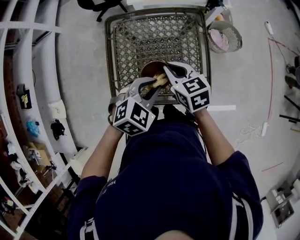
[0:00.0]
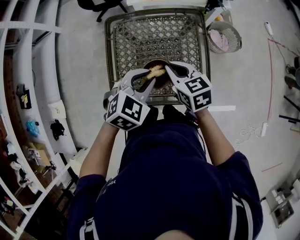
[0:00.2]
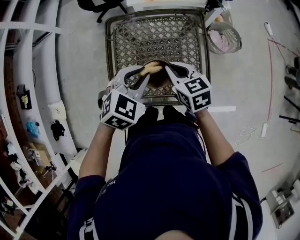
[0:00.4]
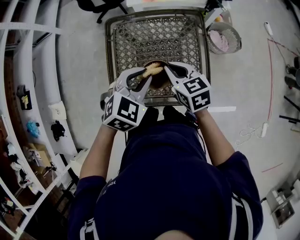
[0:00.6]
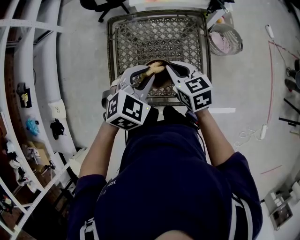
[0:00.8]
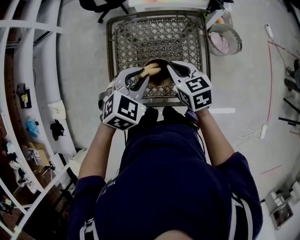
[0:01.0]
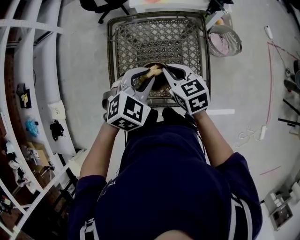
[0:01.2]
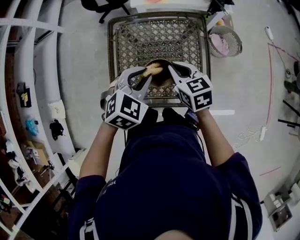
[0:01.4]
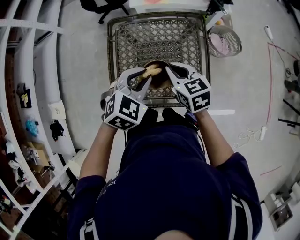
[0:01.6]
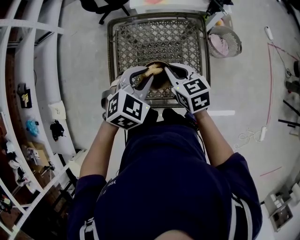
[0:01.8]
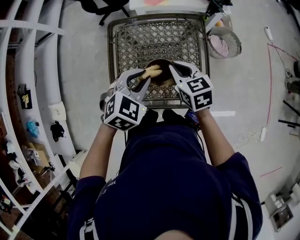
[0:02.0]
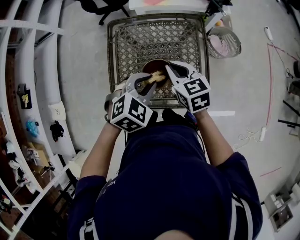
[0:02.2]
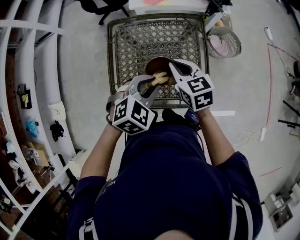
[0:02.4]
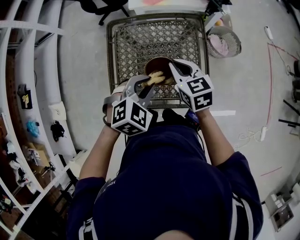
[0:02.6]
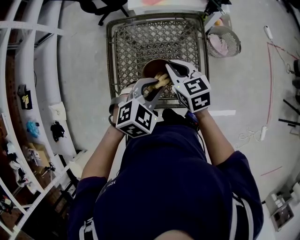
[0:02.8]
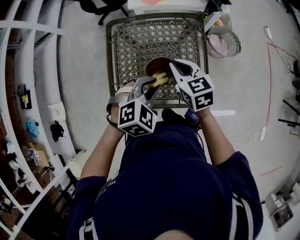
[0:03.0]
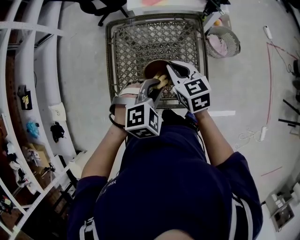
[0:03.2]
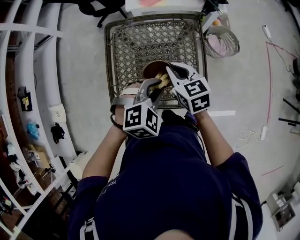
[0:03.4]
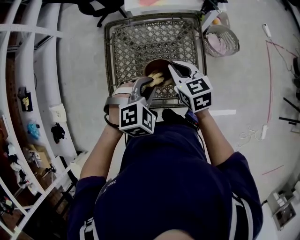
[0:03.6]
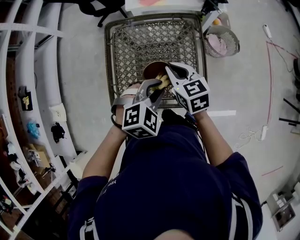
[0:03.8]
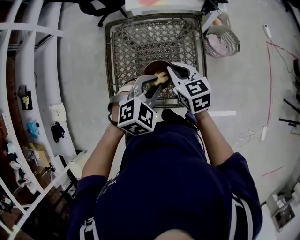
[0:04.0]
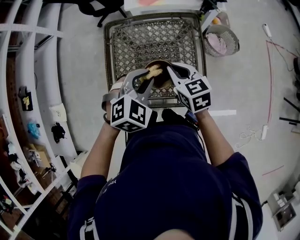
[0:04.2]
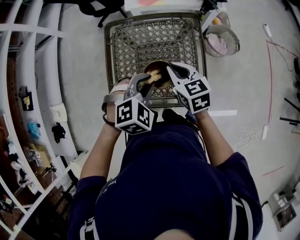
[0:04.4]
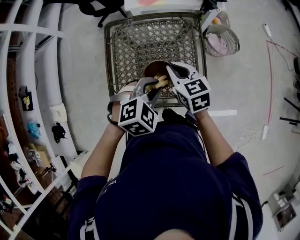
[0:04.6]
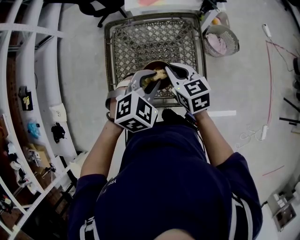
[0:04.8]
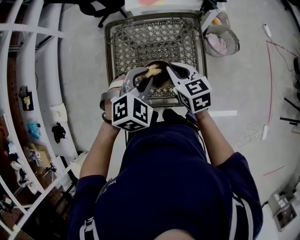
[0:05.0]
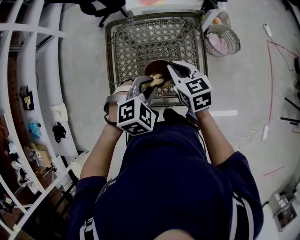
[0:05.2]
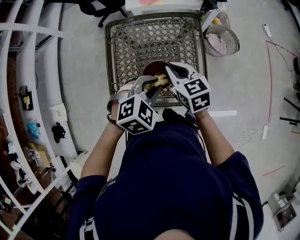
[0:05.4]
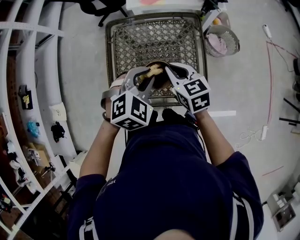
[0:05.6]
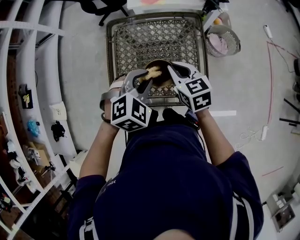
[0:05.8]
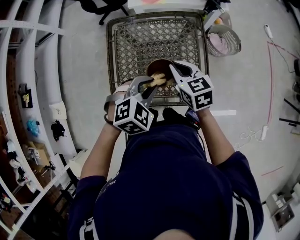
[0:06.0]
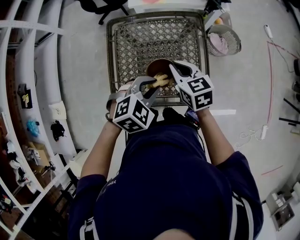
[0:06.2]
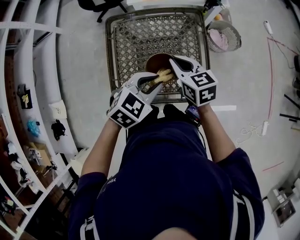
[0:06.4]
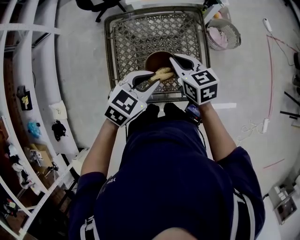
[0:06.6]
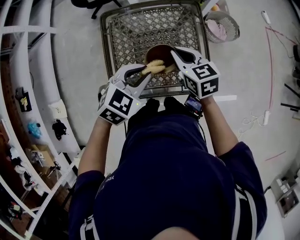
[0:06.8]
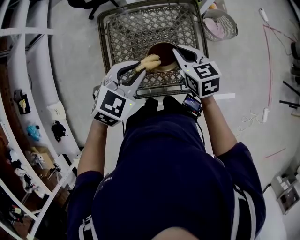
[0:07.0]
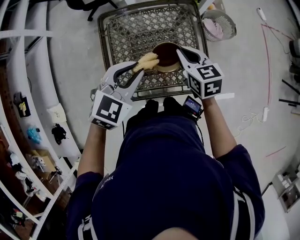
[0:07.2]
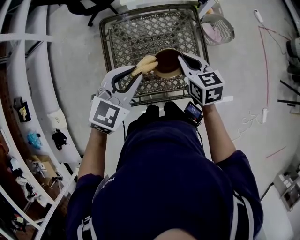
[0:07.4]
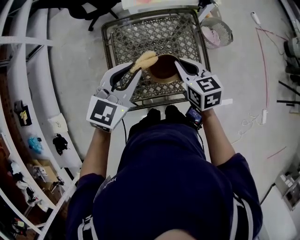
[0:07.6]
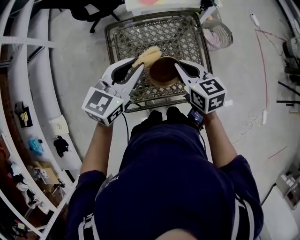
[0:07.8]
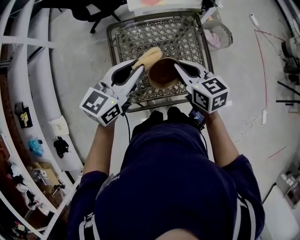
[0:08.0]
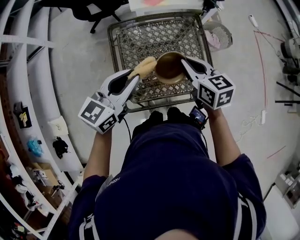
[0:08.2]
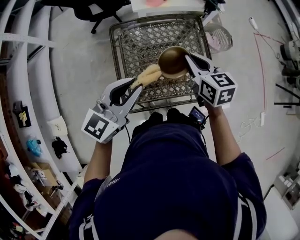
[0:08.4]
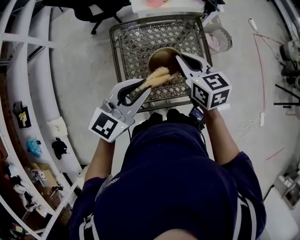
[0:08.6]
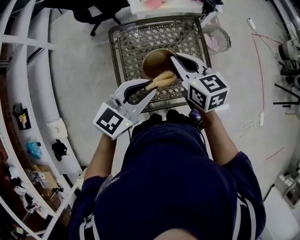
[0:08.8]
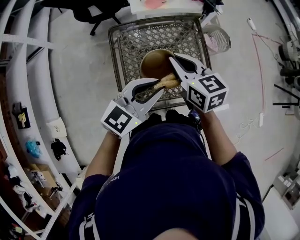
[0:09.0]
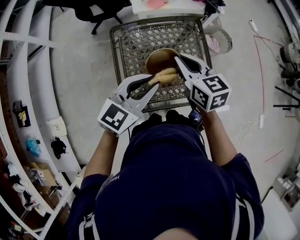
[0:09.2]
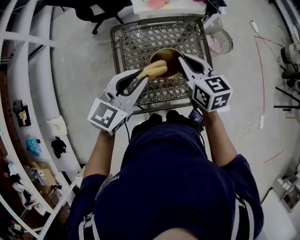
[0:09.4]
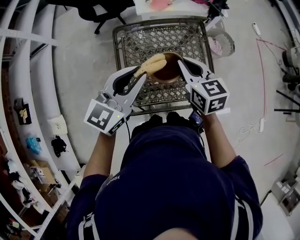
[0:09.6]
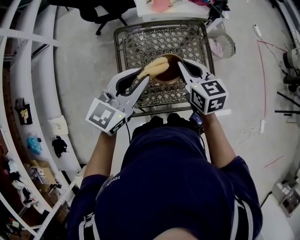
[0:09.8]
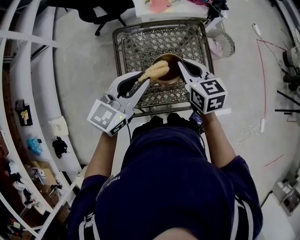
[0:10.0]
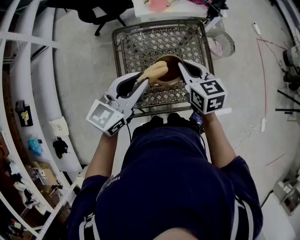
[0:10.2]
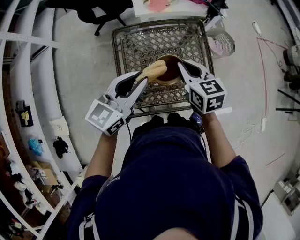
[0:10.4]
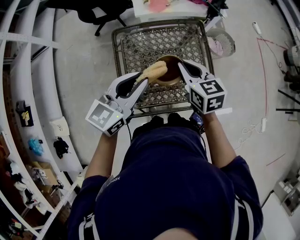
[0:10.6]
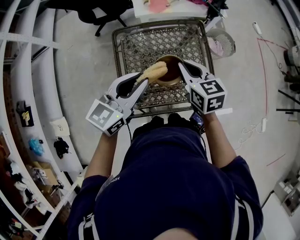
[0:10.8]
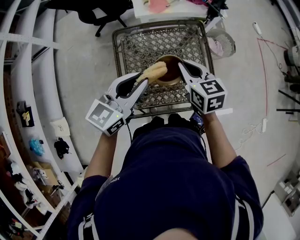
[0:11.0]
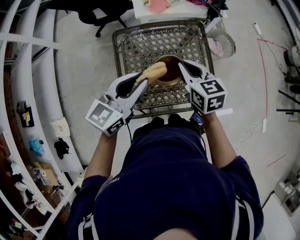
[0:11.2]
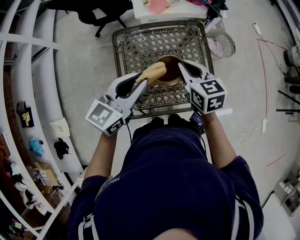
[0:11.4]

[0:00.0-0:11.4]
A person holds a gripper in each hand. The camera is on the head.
0:00.0 to 0:01.4: The left gripper changes place by about 5 cm.
0:01.4 to 0:02.8: The left gripper changes place by about 5 cm.
0:02.8 to 0:05.6: The grippers move only a little.
0:05.6 to 0:07.2: The left gripper travels to the left by some 5 cm.
0:07.2 to 0:08.6: The right gripper is displaced upward and to the left by about 10 cm, while the left gripper heads to the left and upward, covering about 10 cm, and changes its angle by roughly 30 degrees.
0:08.6 to 0:11.4: The grippers stay close to where they were, moving slightly.

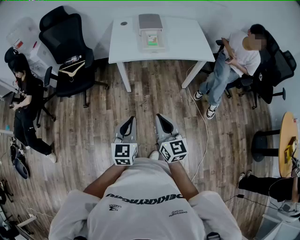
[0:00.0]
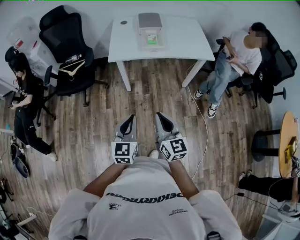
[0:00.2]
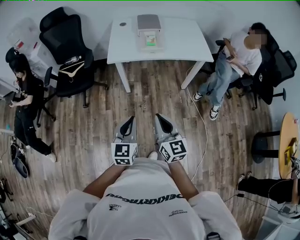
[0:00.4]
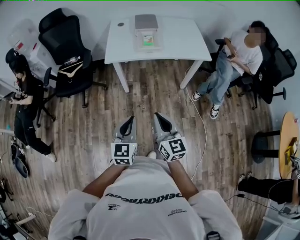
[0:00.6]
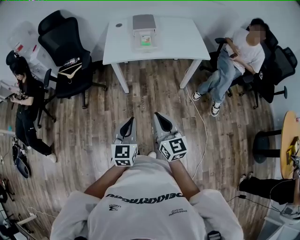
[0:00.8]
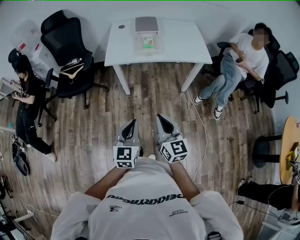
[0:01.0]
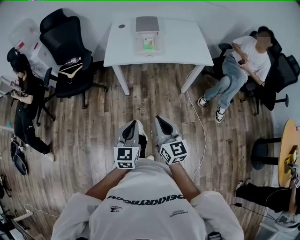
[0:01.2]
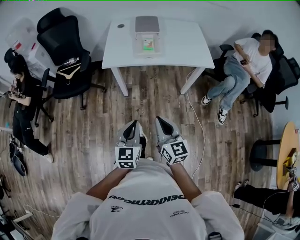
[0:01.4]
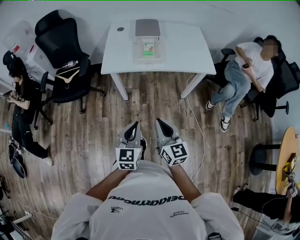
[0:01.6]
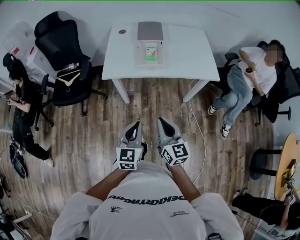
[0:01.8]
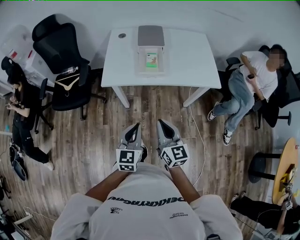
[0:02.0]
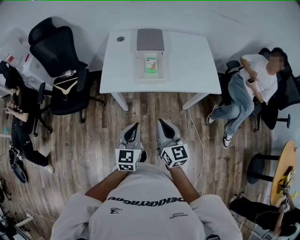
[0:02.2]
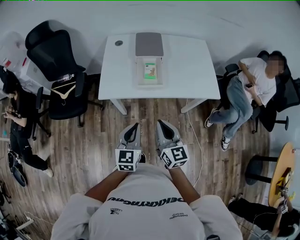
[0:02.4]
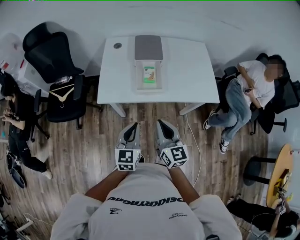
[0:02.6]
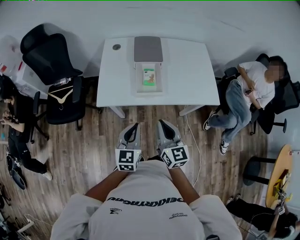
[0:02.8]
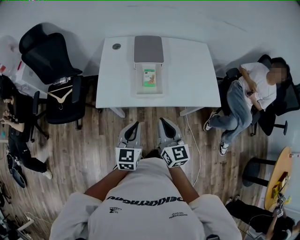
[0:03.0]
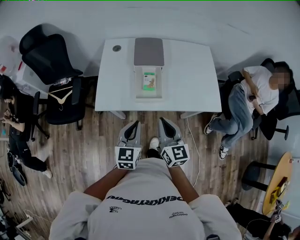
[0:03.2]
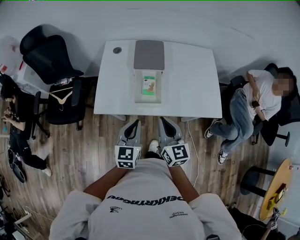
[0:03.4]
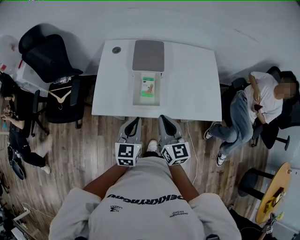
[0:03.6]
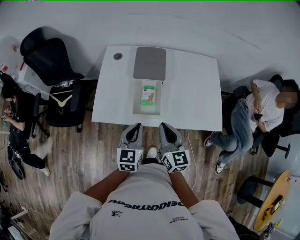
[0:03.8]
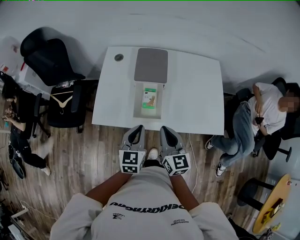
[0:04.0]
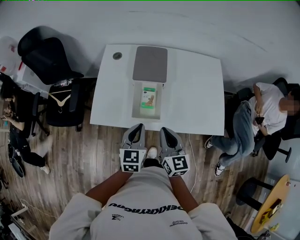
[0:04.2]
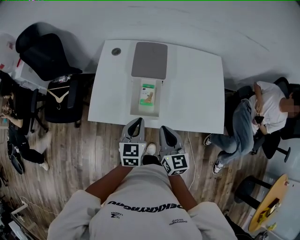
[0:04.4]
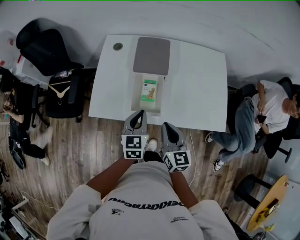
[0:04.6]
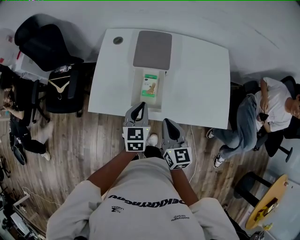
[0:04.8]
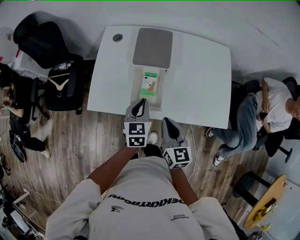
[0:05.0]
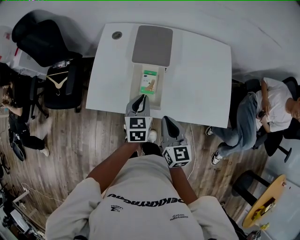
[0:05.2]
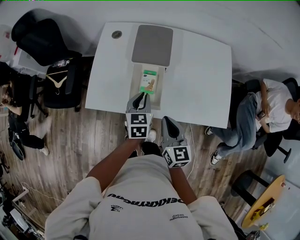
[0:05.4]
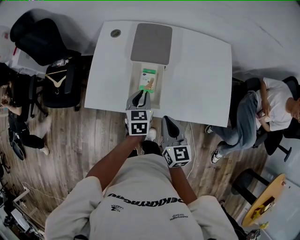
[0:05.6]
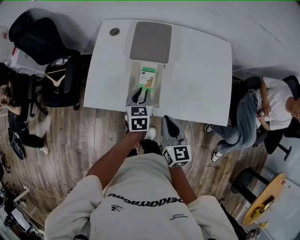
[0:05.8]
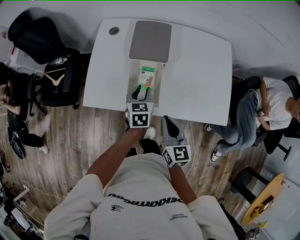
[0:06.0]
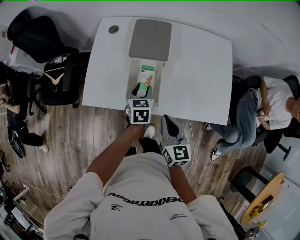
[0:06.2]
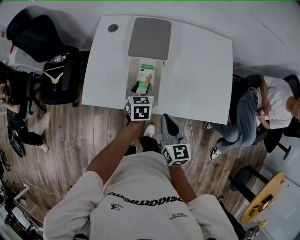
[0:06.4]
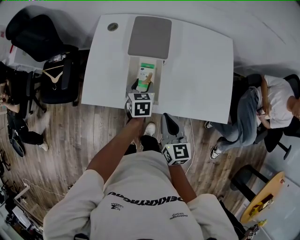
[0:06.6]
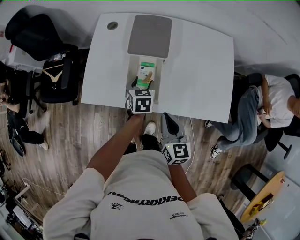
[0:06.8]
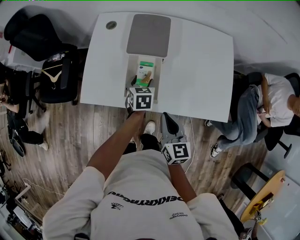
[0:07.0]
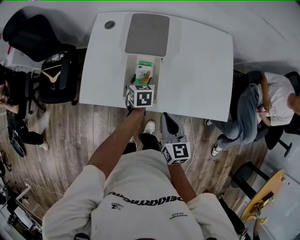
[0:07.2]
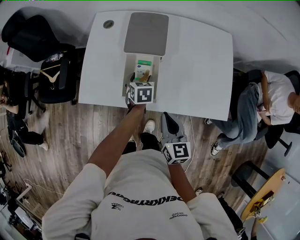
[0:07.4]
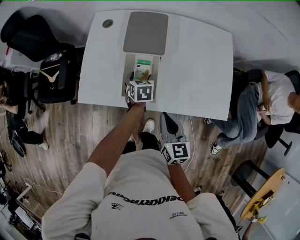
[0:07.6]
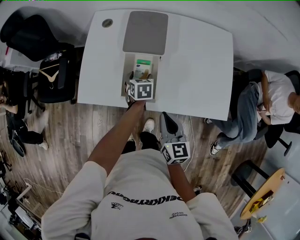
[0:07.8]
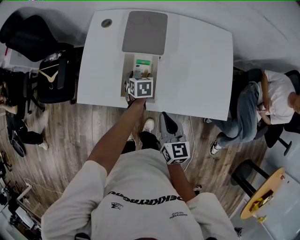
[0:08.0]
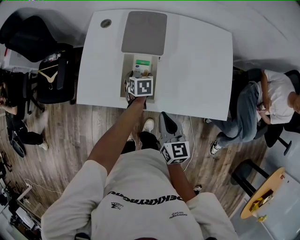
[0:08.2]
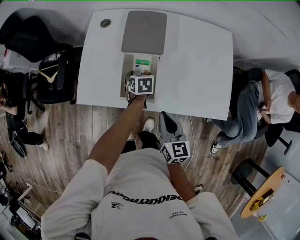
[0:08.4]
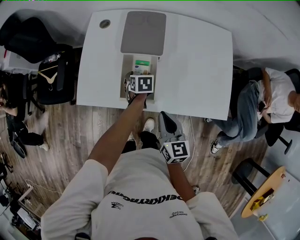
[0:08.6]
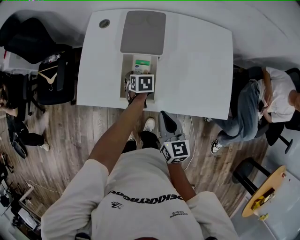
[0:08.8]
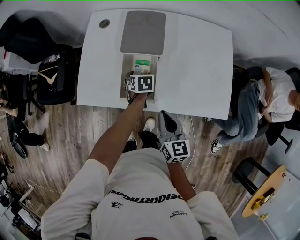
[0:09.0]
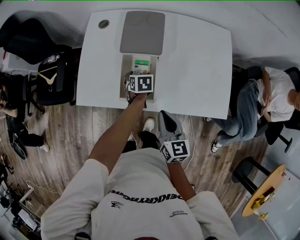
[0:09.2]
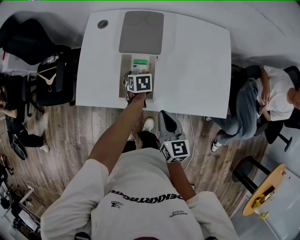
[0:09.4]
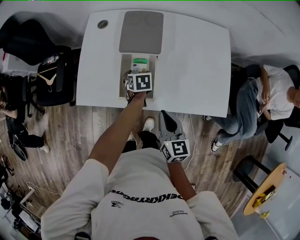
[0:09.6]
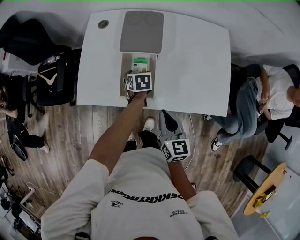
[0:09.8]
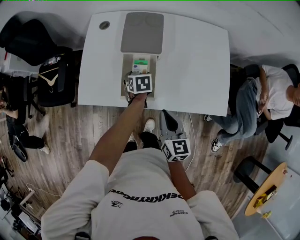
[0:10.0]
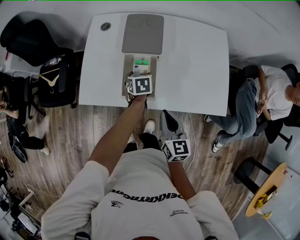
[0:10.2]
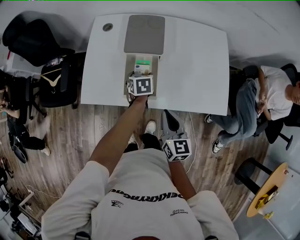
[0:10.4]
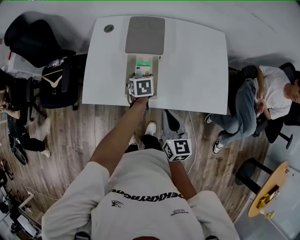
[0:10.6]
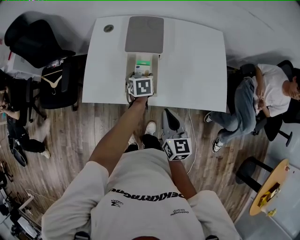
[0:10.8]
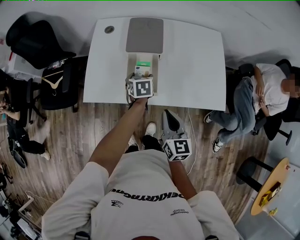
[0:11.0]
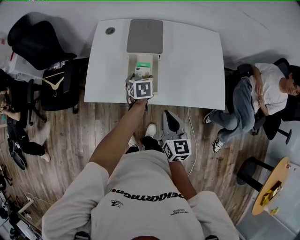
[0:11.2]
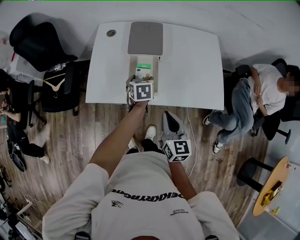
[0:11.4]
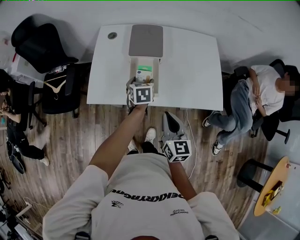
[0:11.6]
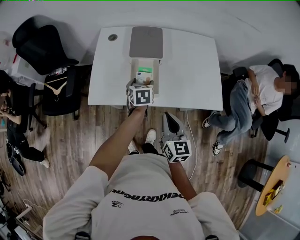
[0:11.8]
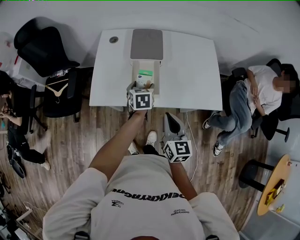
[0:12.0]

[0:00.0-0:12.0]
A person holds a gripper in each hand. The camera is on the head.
0:00.0 to 0:01.6: The left gripper travels to the right and forward by roughly 15 cm, while the right gripper is displaced forward and to the right by approximately 10 cm.
0:01.6 to 0:03.0: Both grippers travel together forward, about 25 cm.
0:03.0 to 0:04.4: The right gripper is displaced forward, to the right and downward by roughly 15 cm, while the left gripper goes approximately 15 cm forward and to the right.
0:04.4 to 0:06.0: The left gripper heads forward and downward, covering approximately 10 cm.
0:06.0 to 0:07.6: The left gripper is displaced downward by approximately 10 cm, and opens its fingers.
0:07.6 to 0:09.0: The grippers move only a little.
0:09.0 to 0:10.4: The left gripper ends up approximately 5 cm from where it was.
0:10.4 to 0:12.0: The left gripper moves upward and backward, some 10 cm, while the right gripper heads backward and upward, covering roughly 10 cm.

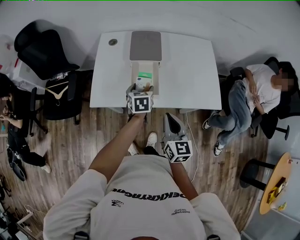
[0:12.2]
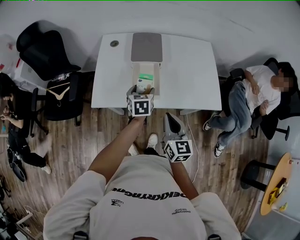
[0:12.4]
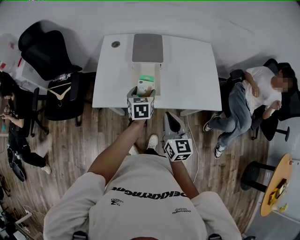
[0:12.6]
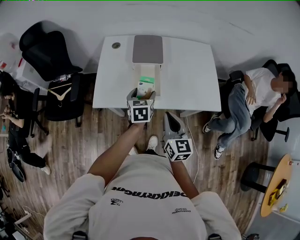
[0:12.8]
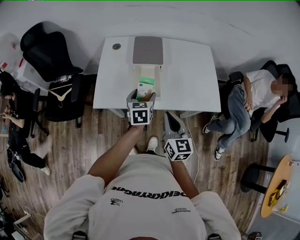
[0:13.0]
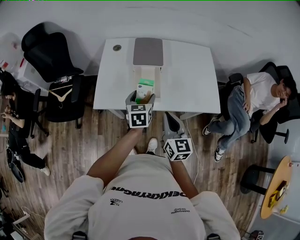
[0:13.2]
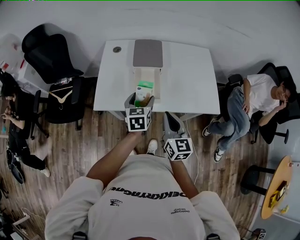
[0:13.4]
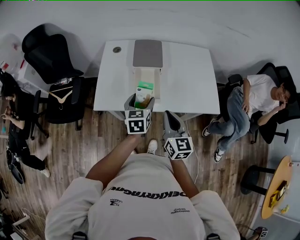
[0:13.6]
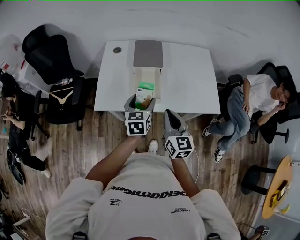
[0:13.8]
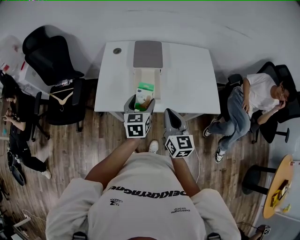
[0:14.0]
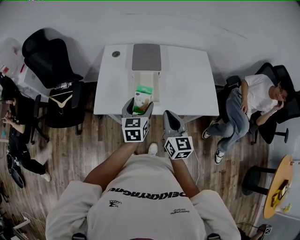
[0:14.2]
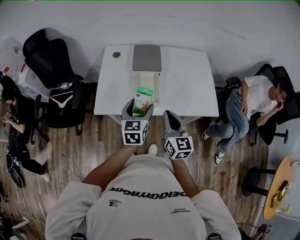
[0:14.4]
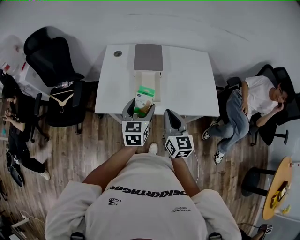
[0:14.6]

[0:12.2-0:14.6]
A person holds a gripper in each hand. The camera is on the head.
0:12.2 to 0:13.4: The left gripper goes roughly 10 cm upward and backward.
0:13.4 to 0:14.6: The left gripper moves about 5 cm.
